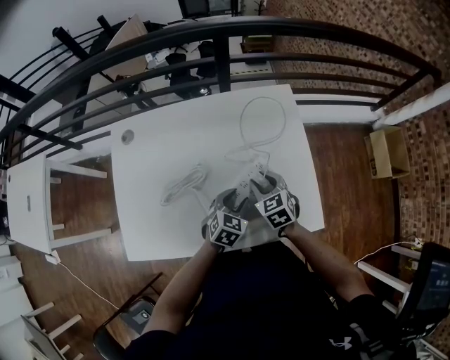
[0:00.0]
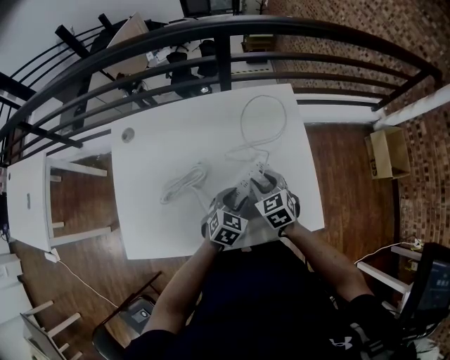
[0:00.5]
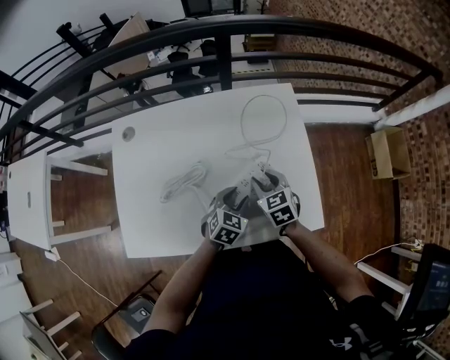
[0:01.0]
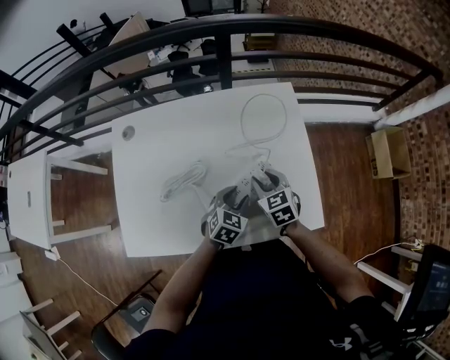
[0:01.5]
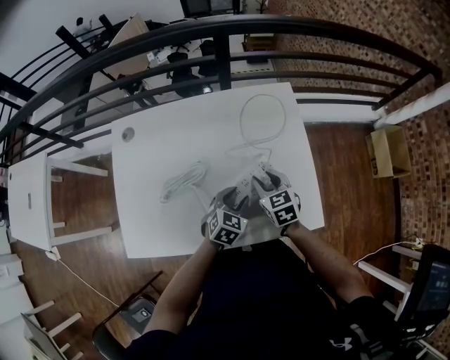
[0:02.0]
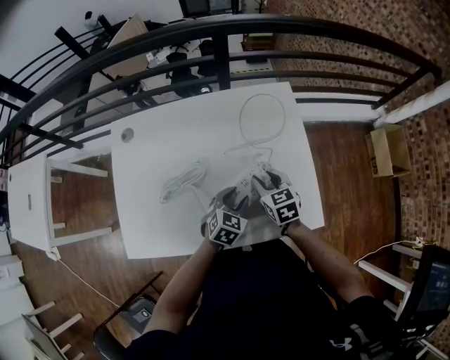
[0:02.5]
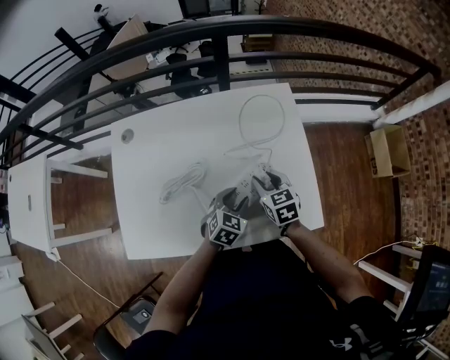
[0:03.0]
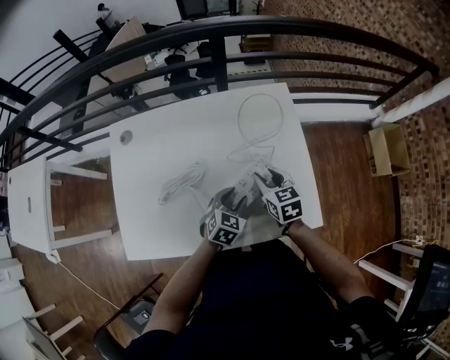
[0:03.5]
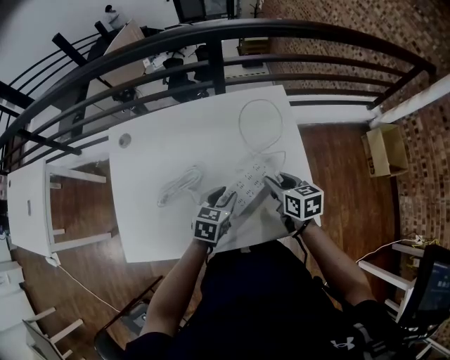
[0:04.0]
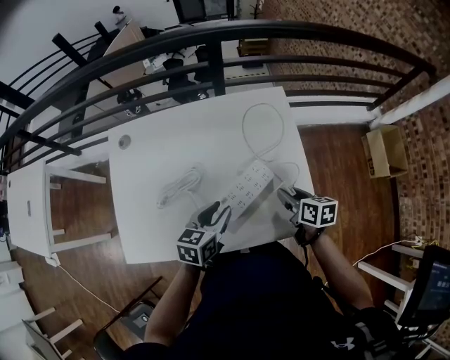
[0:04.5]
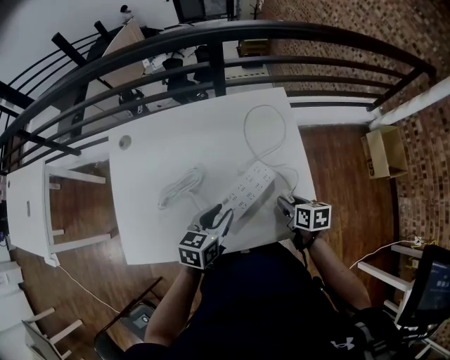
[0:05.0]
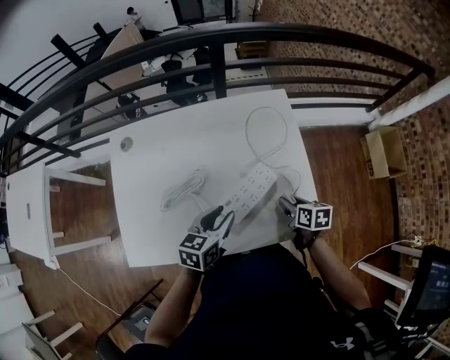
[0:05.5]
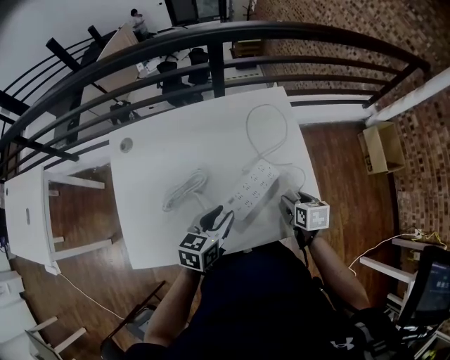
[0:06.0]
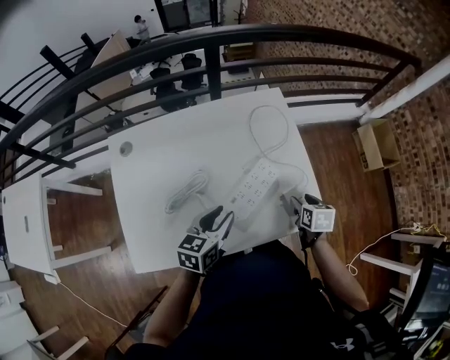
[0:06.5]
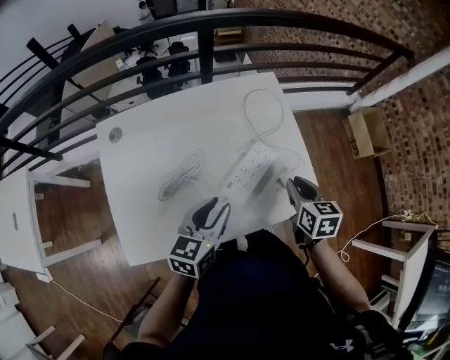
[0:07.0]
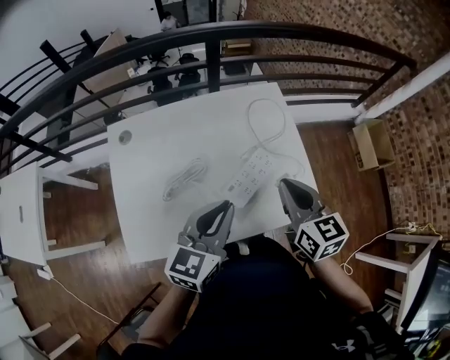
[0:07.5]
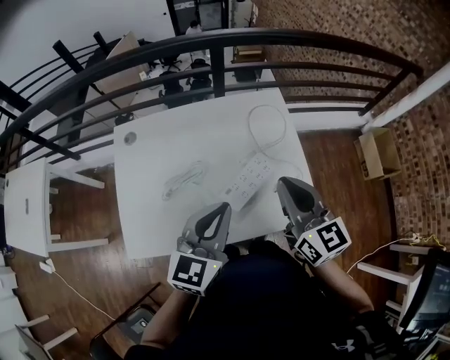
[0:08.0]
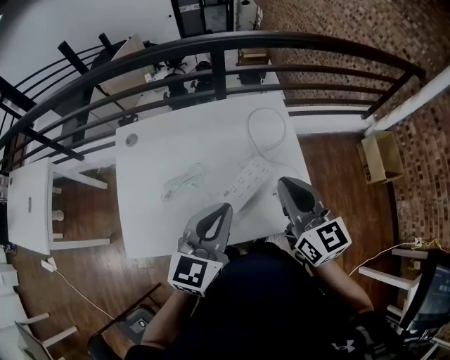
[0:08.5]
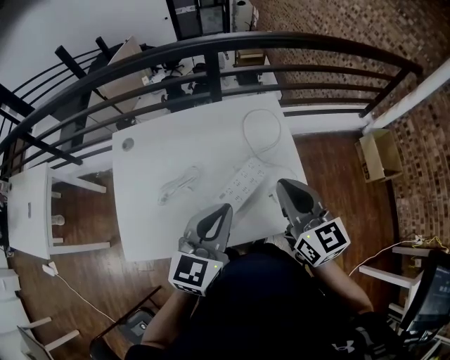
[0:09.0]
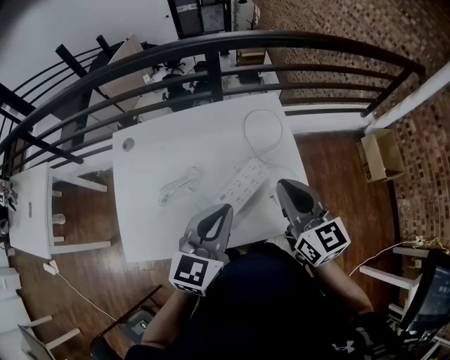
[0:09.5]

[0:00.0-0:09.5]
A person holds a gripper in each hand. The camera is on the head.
0:00.0 to 0:02.0: The grippers move only a little.
0:02.0 to 0:04.0: The right gripper heads to the right, covering approximately 5 cm, and turns by roughly 20 degrees.
0:04.0 to 0:05.5: The right gripper travels backward and downward by roughly 10 cm; the left gripper heads upward, covering approximately 5 cm.
0:05.5 to 0:07.5: The right gripper is displaced upward by about 25 cm, turns by approximately 40 degrees, and closes up. Meanwhile the left gripper is displaced upward by some 15 cm, rotates some 20 degrees, and closes up.
0:07.5 to 0:09.5: The right gripper shifts by approximately 5 cm. Meanwhile the left gripper ends up roughly 5 cm from where it was.

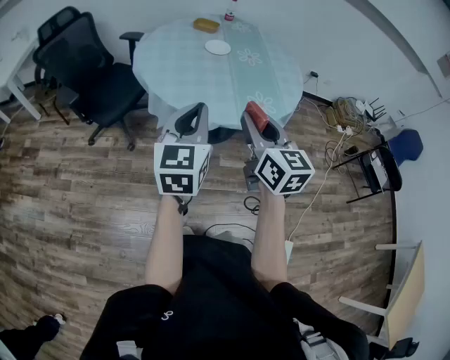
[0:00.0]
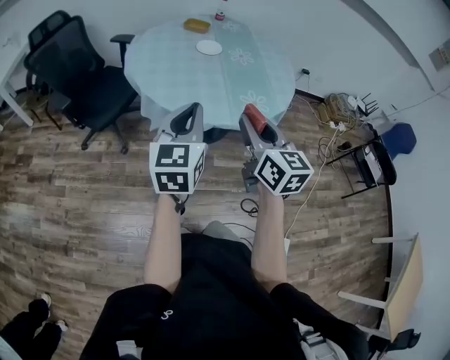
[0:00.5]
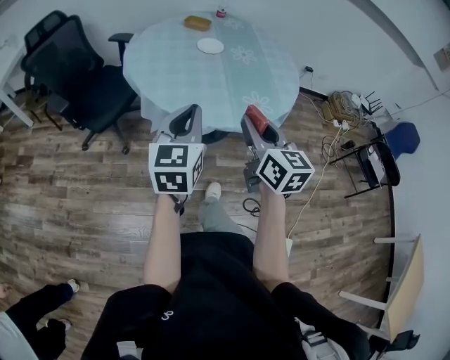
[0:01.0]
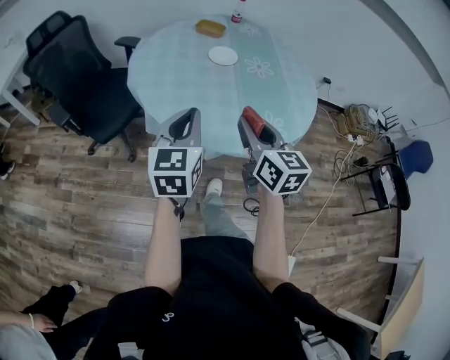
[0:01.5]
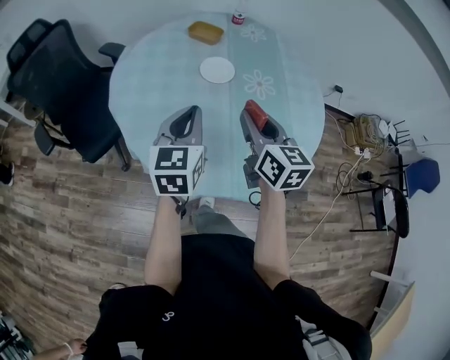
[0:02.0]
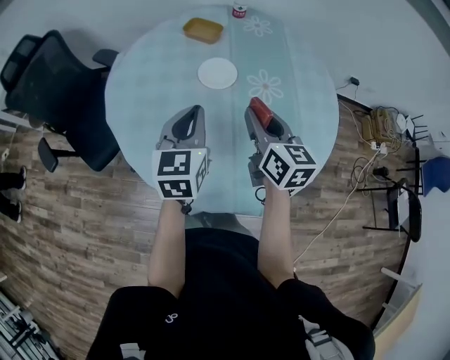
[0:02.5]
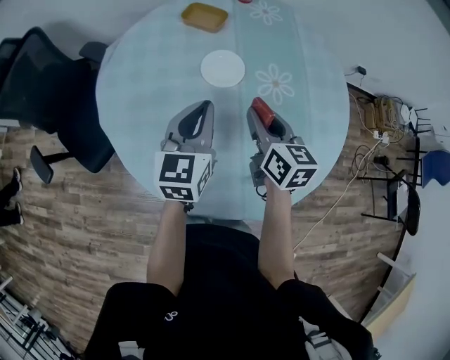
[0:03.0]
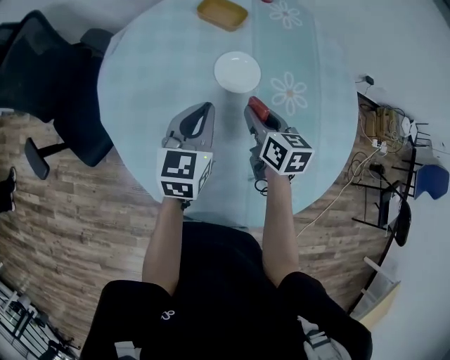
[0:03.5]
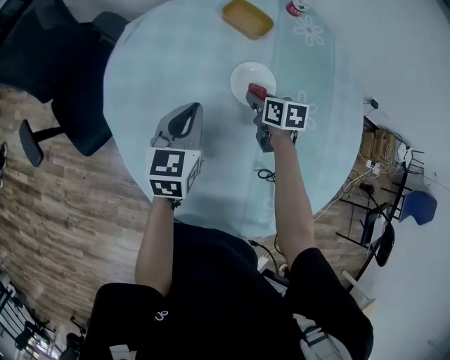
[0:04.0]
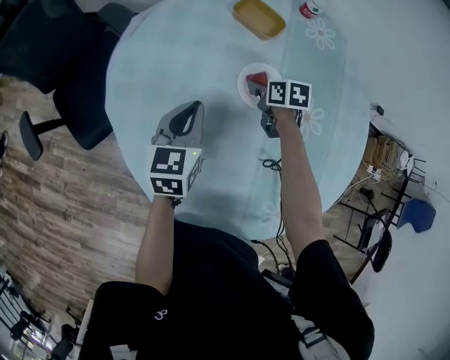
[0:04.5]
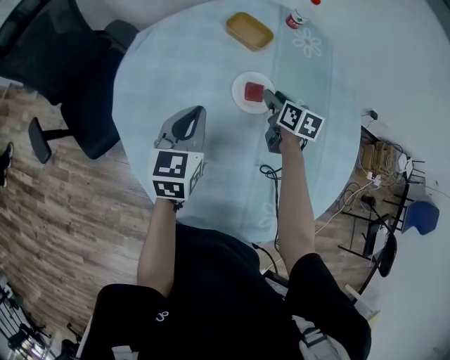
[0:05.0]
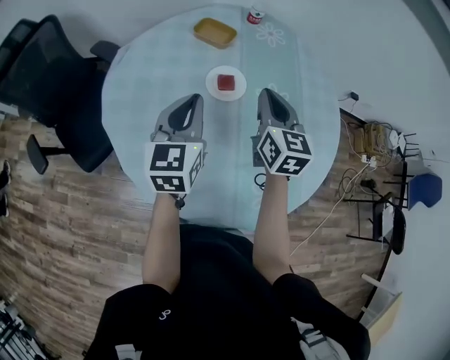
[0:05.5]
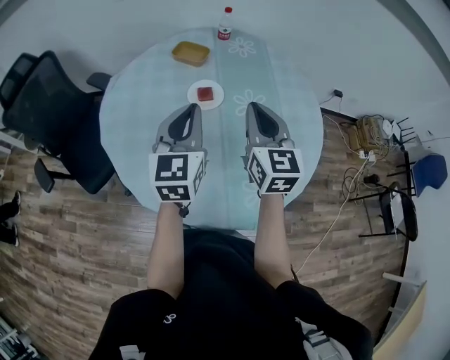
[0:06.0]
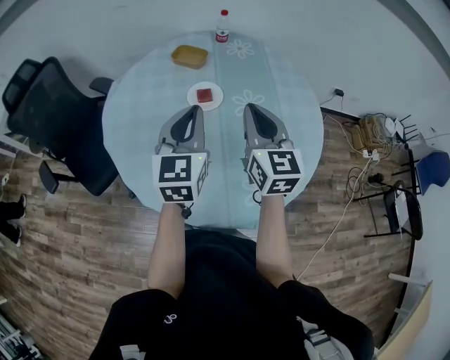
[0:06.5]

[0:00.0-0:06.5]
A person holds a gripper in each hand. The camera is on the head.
0:00.0 to 0:02.0: The two grippers travel together, forward, some 40 cm.
0:02.0 to 0:04.5: The left gripper shifts some 30 cm forward and downward; the right gripper shifts roughly 50 cm forward and downward, and points its fingers roughly 40 degrees further downward.
0:04.5 to 0:06.5: The right gripper moves upward and backward, approximately 40 cm, tilts its fingers approximately 50 degrees upward, and closes; the left gripper is displaced upward, backward and to the right by some 30 cm, and rotates about 30 degrees.

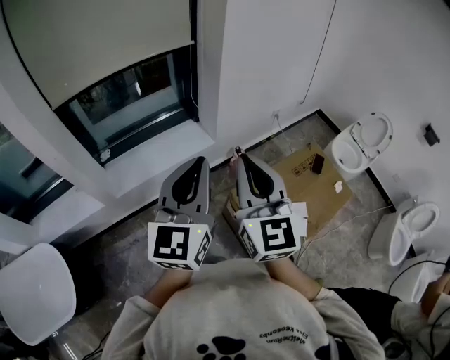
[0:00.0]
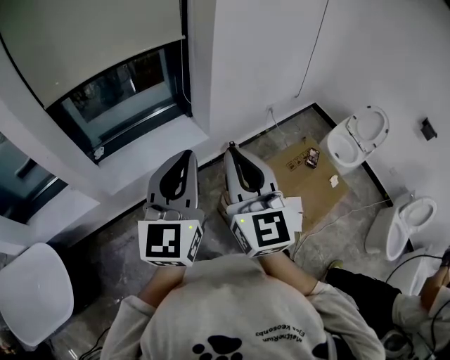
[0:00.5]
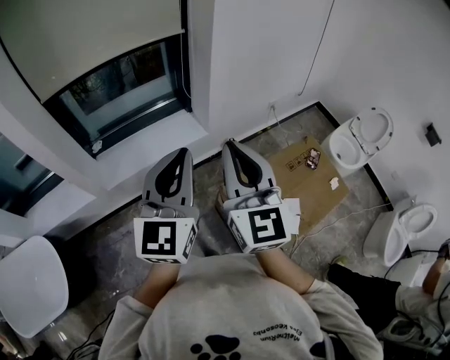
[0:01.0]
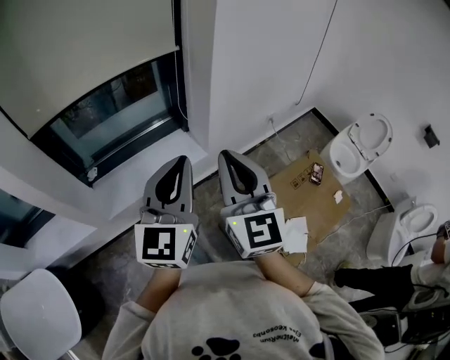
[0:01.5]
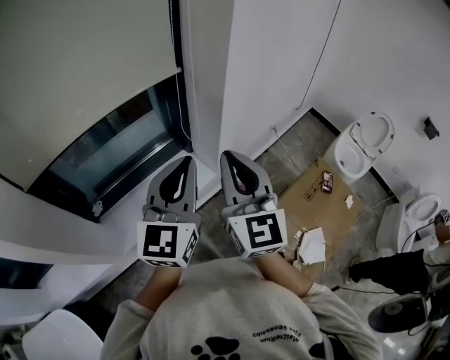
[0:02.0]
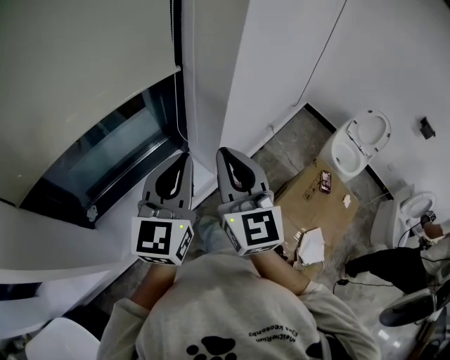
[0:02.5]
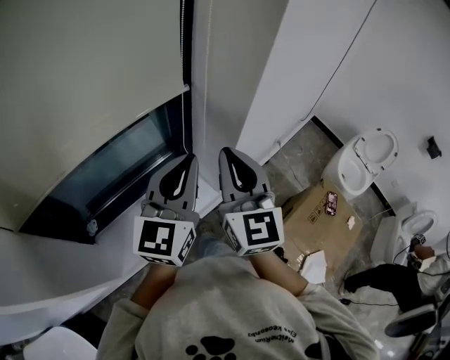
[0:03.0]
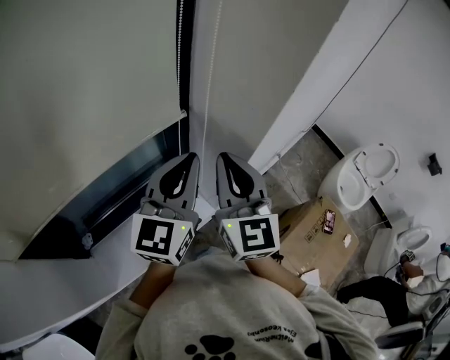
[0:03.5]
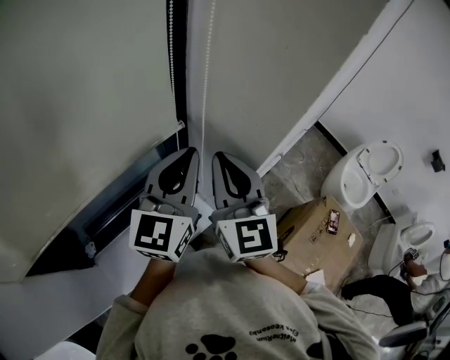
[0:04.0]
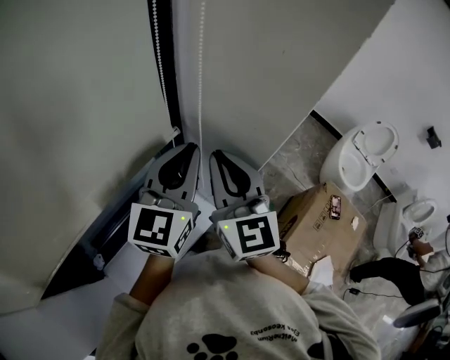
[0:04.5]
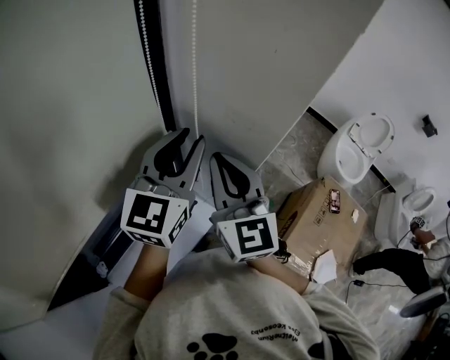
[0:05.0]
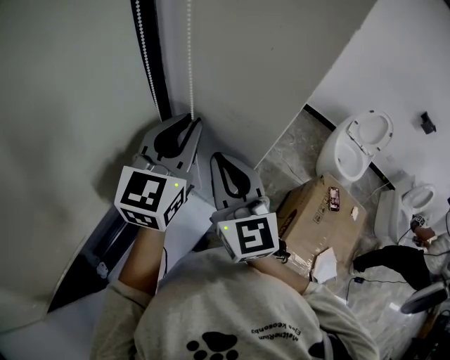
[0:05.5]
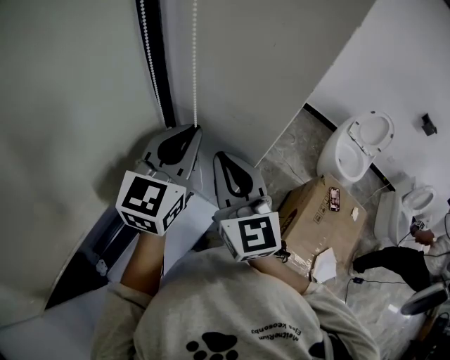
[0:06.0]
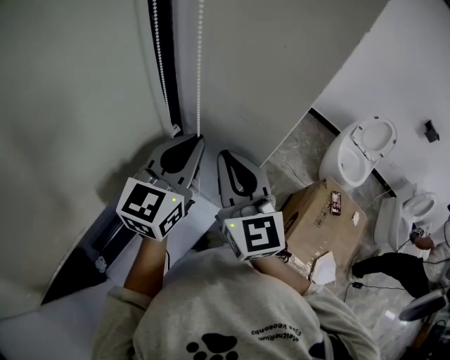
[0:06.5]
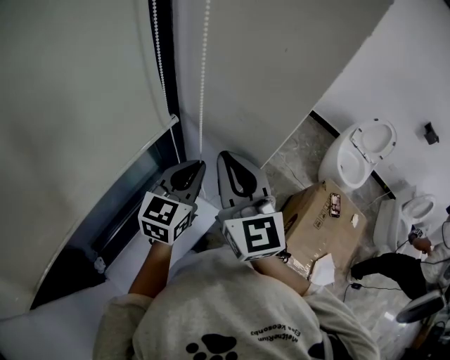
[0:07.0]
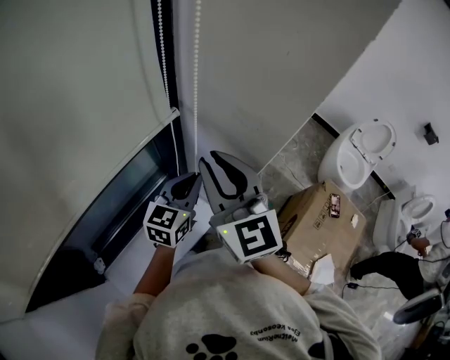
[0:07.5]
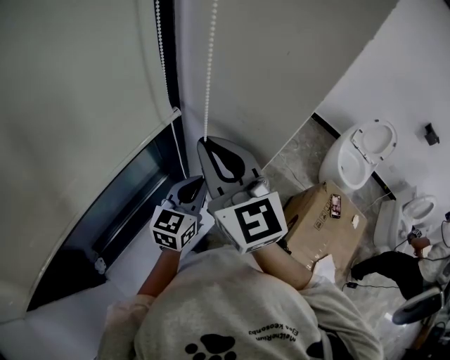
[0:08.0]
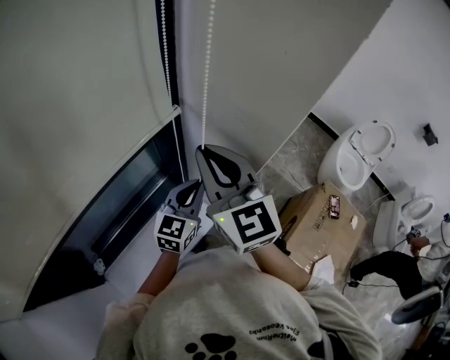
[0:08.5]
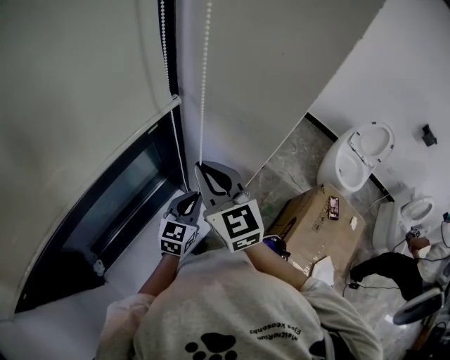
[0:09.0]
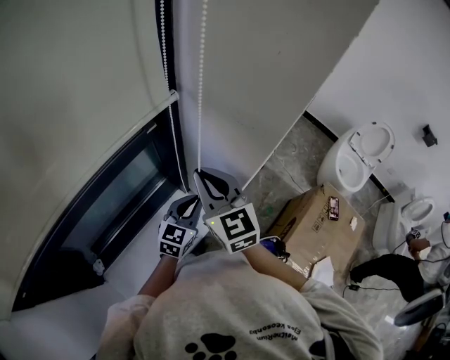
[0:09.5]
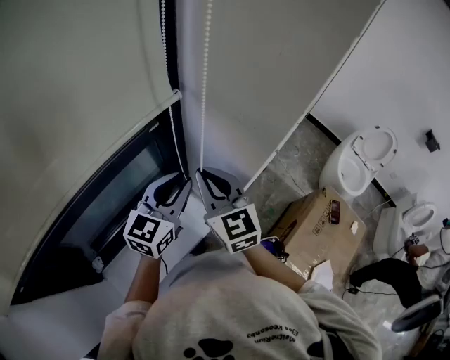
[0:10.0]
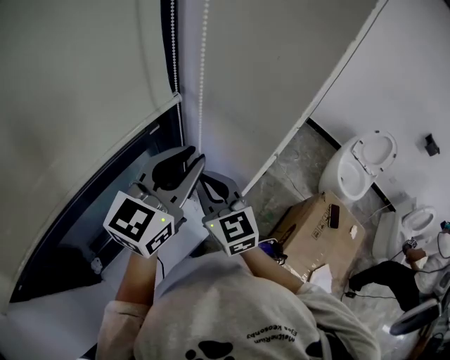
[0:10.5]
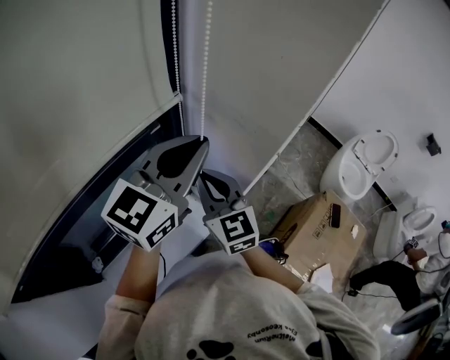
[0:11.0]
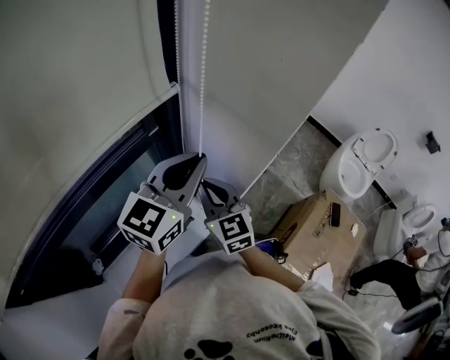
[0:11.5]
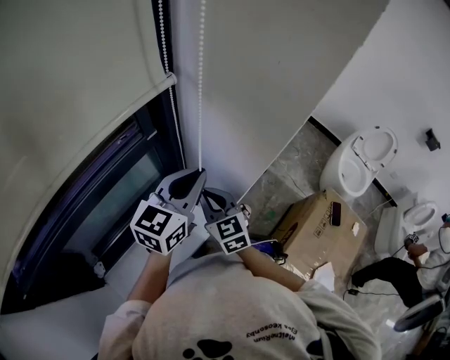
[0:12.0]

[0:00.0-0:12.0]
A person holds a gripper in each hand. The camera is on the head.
0:00.0 to 0:02.0: The grippers both shift forward by some 25 cm.
0:02.0 to 0:04.0: Both grippers travel together forward, approximately 30 cm.
0:04.0 to 0:06.0: The left gripper is displaced forward by approximately 5 cm, and opens, then closes again.
0:06.0 to 0:08.0: The left gripper heads downward, covering some 15 cm; the right gripper heads to the left, covering roughly 5 cm.
0:08.0 to 0:10.0: The left gripper goes downward and returns, roughly 10 cm each way, while the right gripper is displaced downward by approximately 10 cm.
0:10.0 to 0:12.0: The left gripper goes upward and returns, about 15 cm each way; the right gripper goes approximately 10 cm downward.
